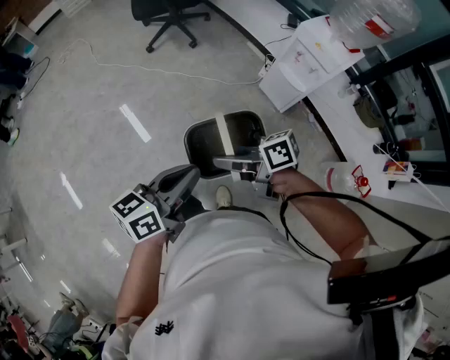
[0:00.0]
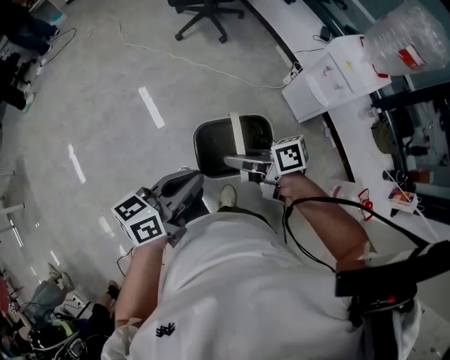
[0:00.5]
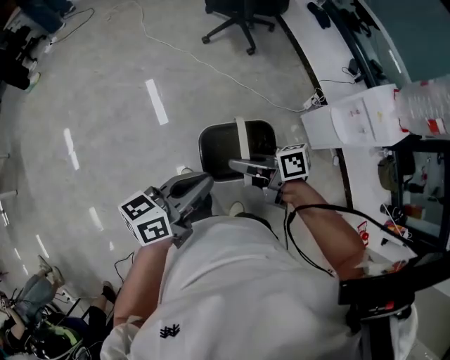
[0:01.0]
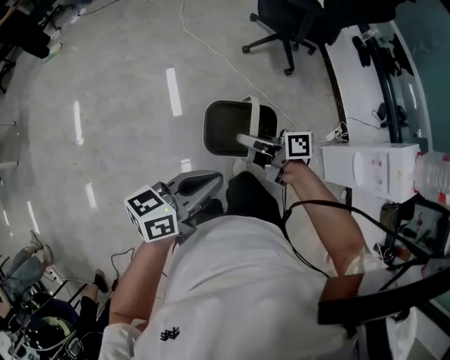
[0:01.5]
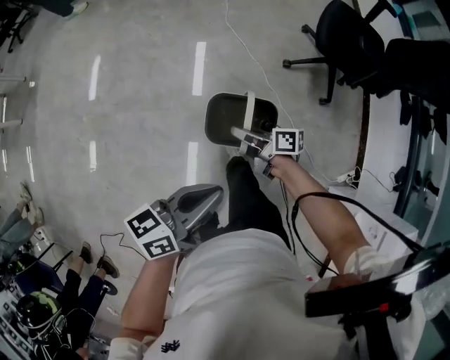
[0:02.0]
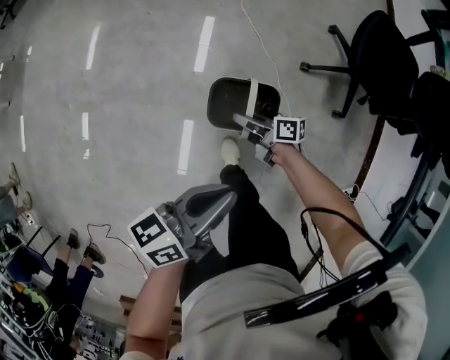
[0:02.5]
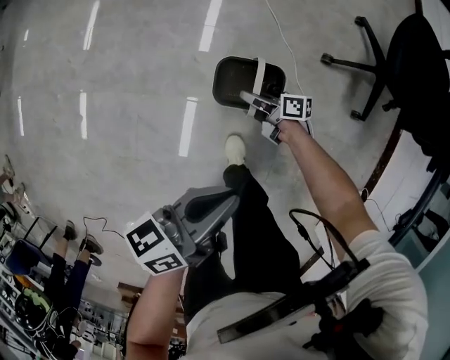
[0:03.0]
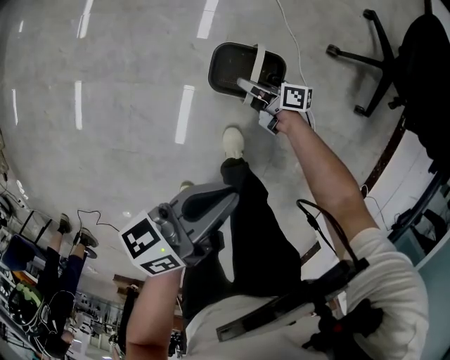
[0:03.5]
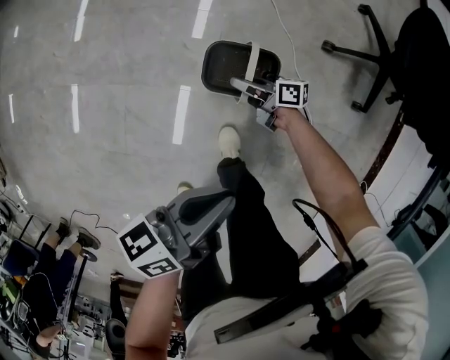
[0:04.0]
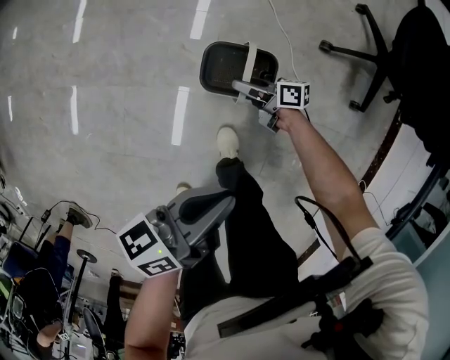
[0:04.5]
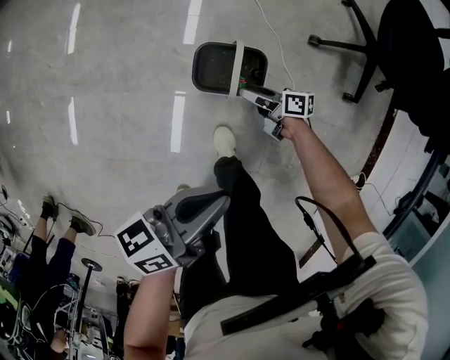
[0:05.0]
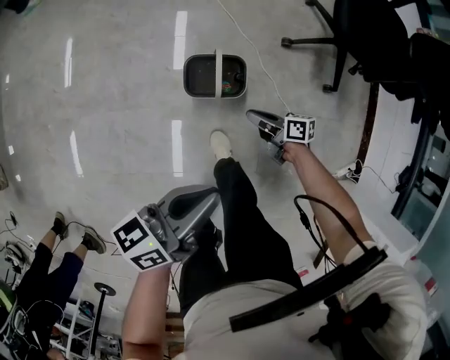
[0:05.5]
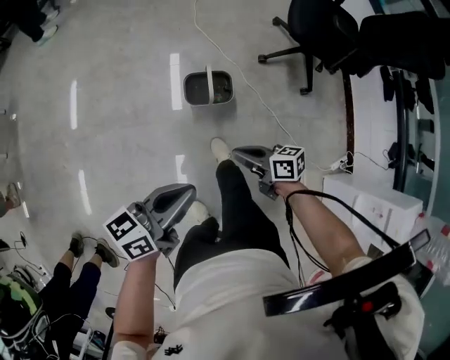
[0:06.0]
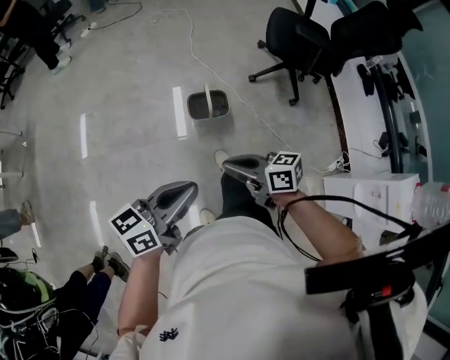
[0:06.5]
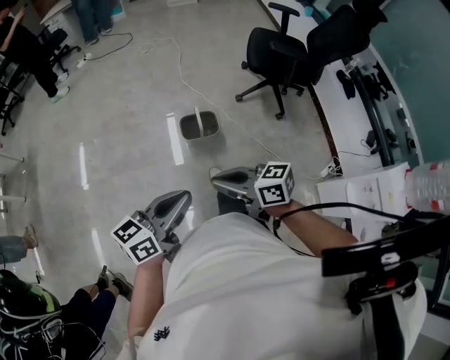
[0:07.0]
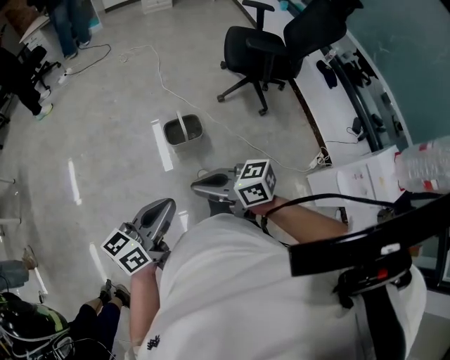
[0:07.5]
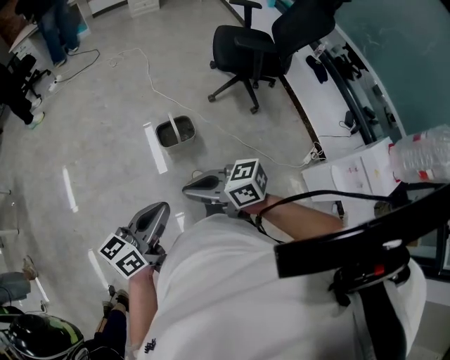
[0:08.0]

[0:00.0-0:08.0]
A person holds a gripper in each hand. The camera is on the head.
0:00.0 to 0:02.0: The two grippers travel together, approximately 70 cm. The left gripper turns by roughly 40 degrees.
0:02.0 to 0:04.0: Both grippers move downward and forward, roughly 40 cm.
0:04.0 to 0:06.0: The right gripper shifts about 50 cm upward and backward, rotates roughly 20 degrees, and closes its fingers; the left gripper shifts approximately 30 cm upward, backward and to the left, and rotates roughly 20 degrees.
0:06.0 to 0:08.0: The right gripper goes some 35 cm upward and backward, and changes its angle by approximately 20 degrees, while the left gripper is displaced backward and upward by about 20 cm.

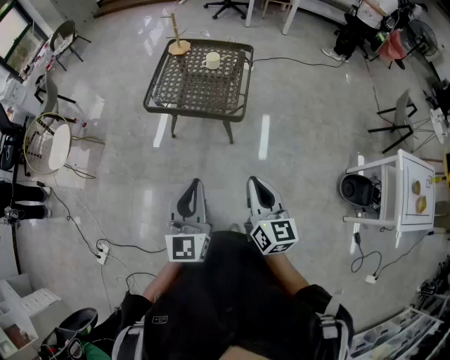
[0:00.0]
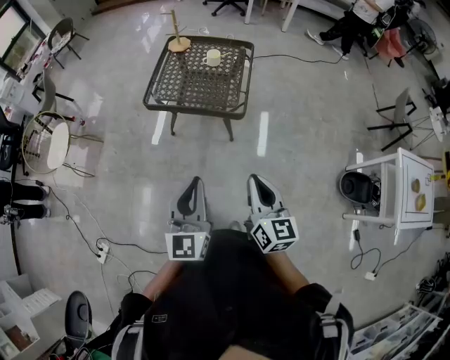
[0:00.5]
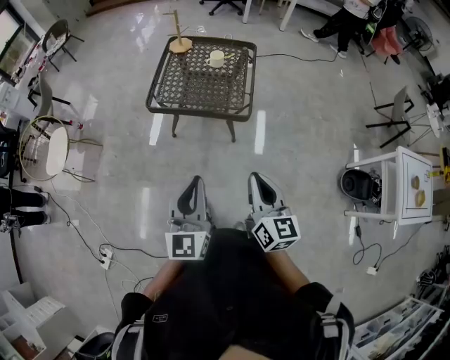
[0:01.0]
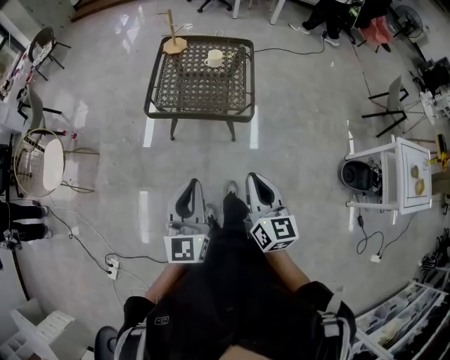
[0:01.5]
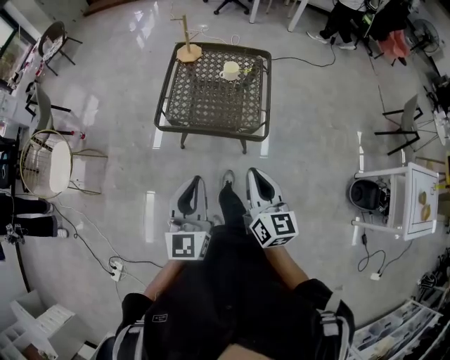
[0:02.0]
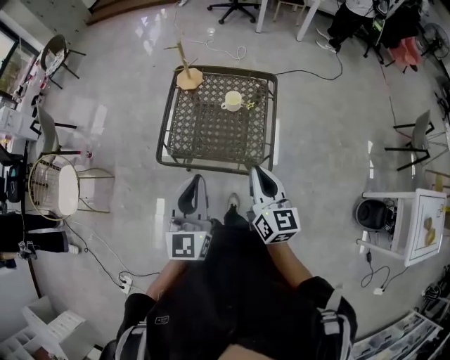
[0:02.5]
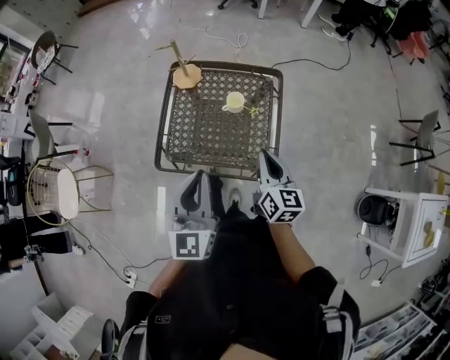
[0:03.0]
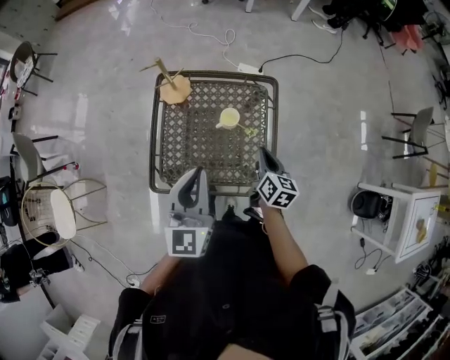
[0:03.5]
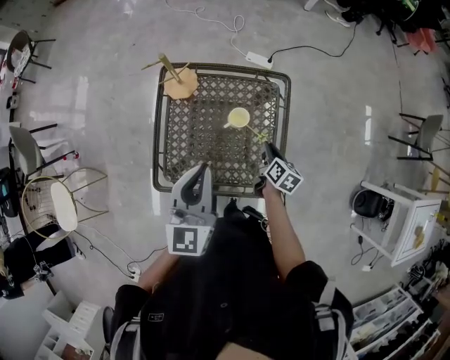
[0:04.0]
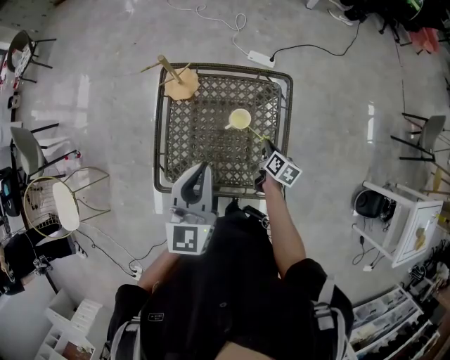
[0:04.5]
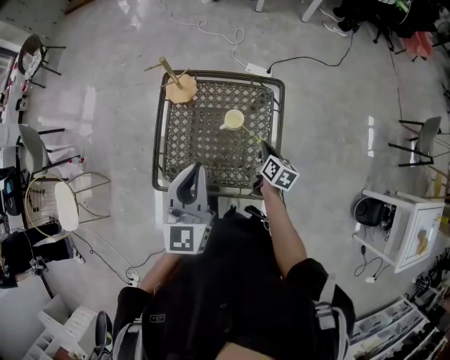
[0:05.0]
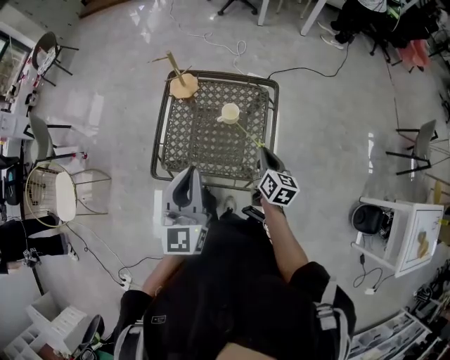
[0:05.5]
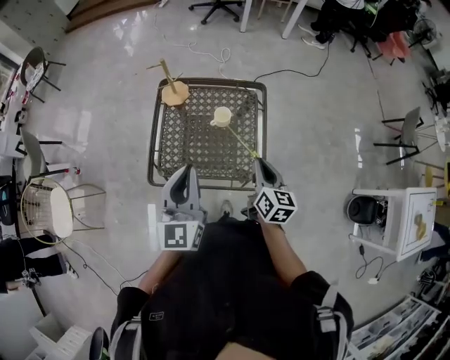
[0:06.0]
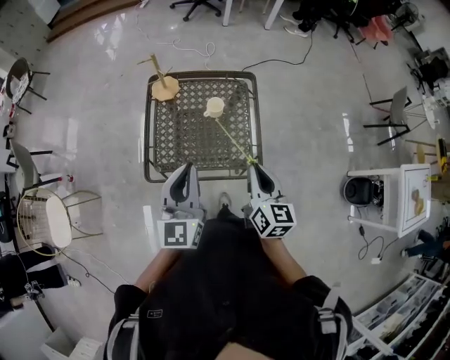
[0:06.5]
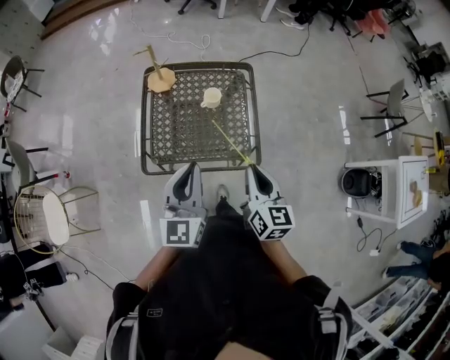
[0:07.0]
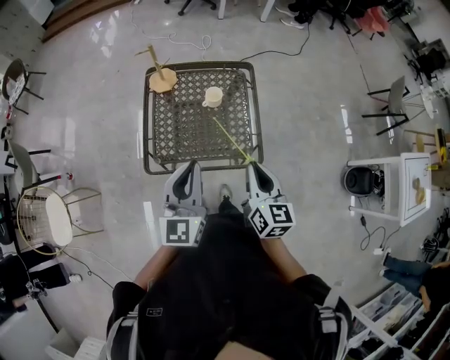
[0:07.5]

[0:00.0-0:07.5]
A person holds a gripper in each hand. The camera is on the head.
0:00.0 to 0:02.0: The grippers both shift forward and to the left by roughly 25 cm.
0:02.0 to 0:04.0: The two grippers travel together, forward, about 50 cm. The right gripper goes some 25 cm downward, and points its fingers approximately 30 degrees further downward.
0:04.0 to 0:05.5: The left gripper travels backward by approximately 15 cm; the right gripper travels upward and backward by approximately 15 cm, and changes its angle by approximately 20 degrees.
0:05.5 to 0:07.5: The right gripper heads backward and upward, covering approximately 20 cm. Meanwhile the left gripper moves backward, roughly 5 cm.

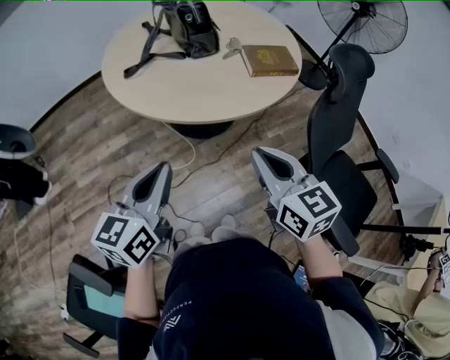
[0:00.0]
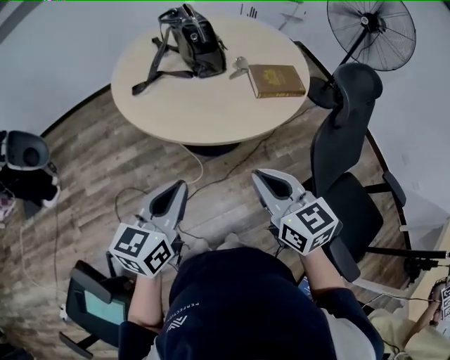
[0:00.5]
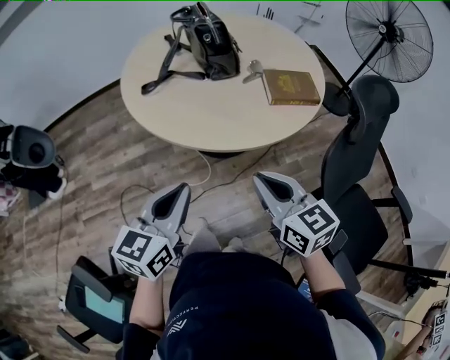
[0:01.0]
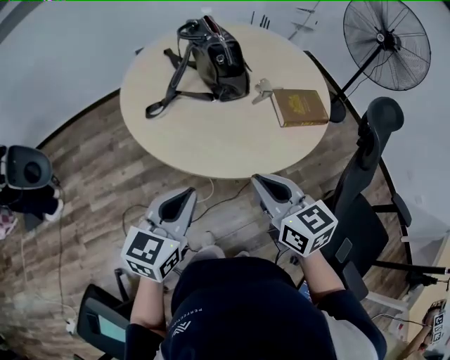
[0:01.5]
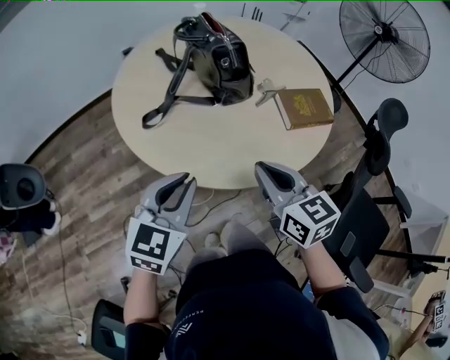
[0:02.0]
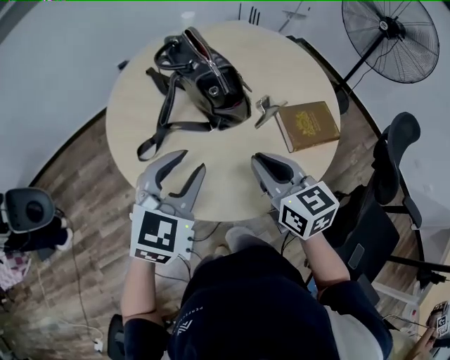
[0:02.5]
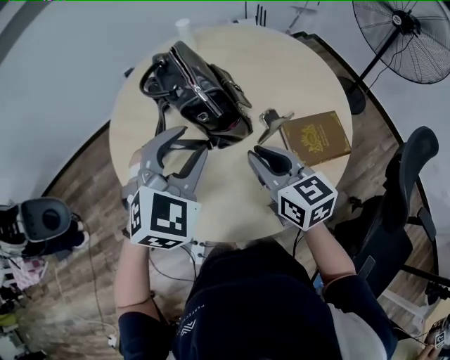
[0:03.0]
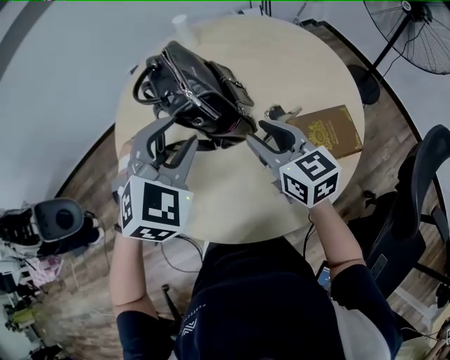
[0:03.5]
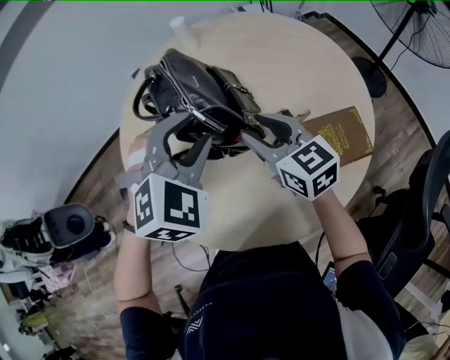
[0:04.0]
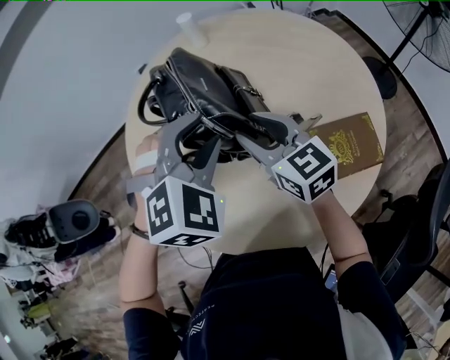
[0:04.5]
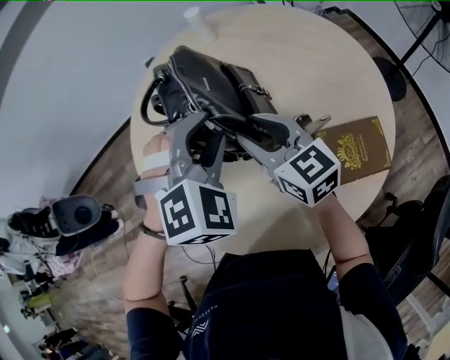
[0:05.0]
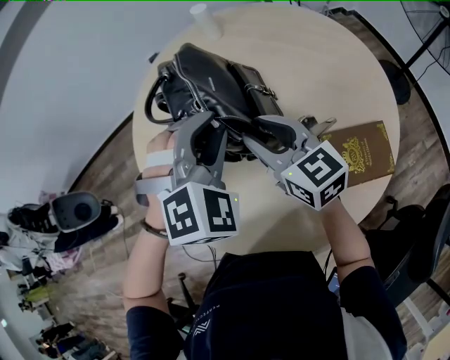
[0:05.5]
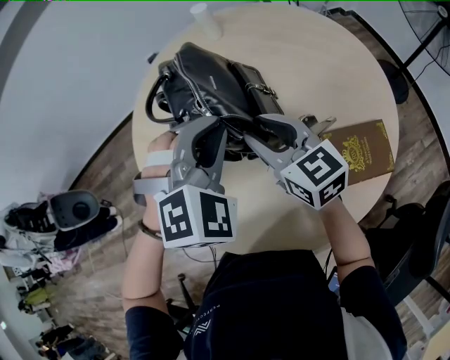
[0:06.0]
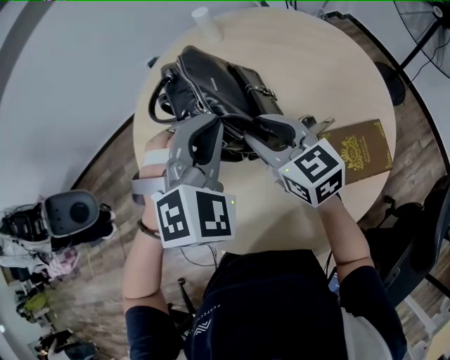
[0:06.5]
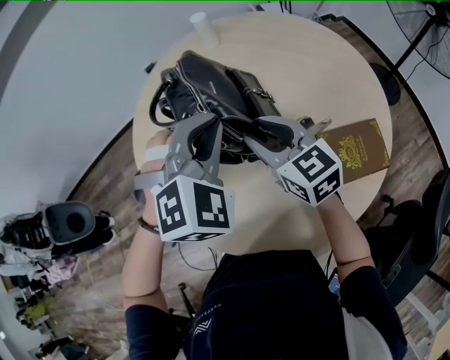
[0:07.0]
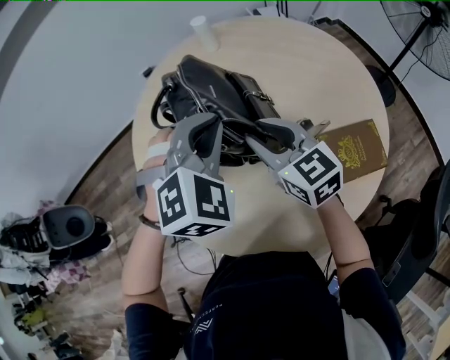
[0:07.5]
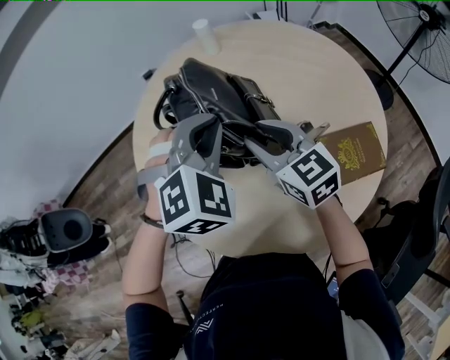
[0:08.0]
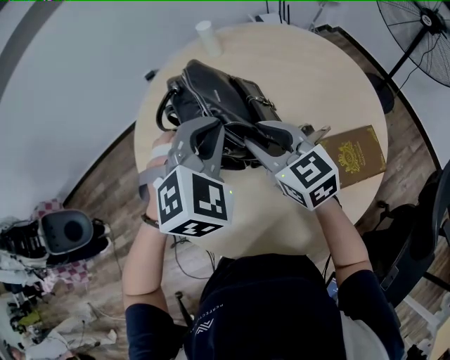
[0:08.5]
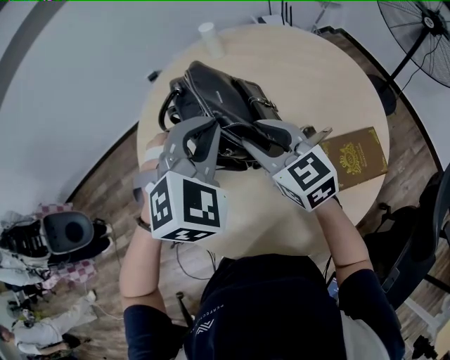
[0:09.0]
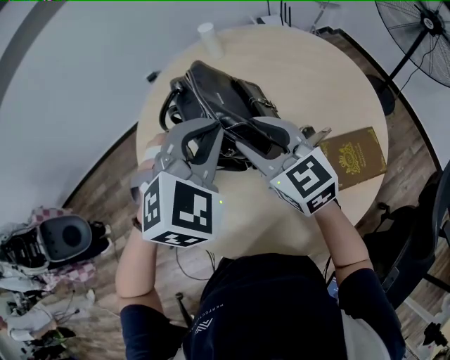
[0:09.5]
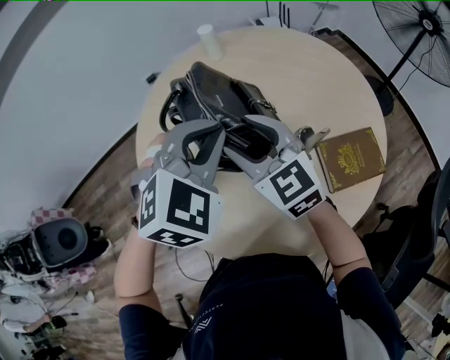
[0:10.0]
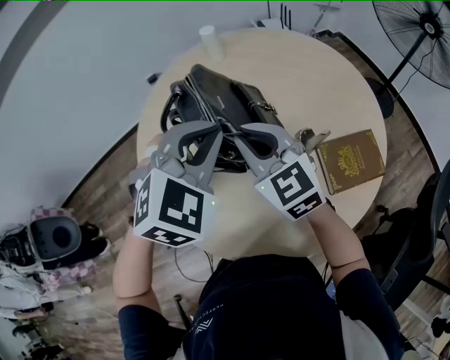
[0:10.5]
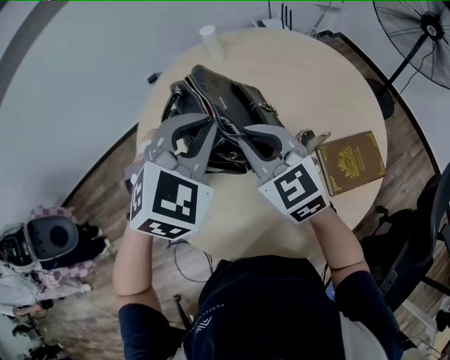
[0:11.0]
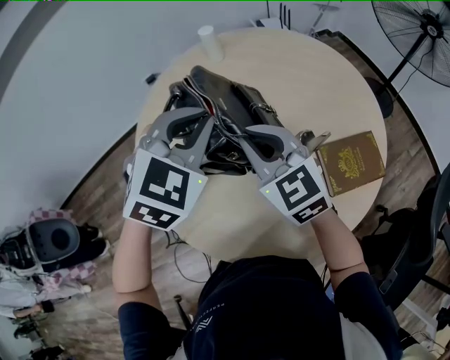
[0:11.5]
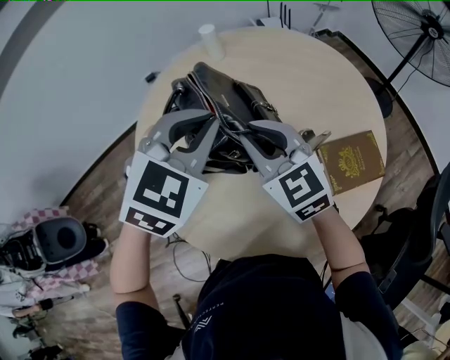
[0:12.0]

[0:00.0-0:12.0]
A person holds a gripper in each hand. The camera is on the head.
0:00.0 to 0:02.0: Both grippers travel together forward, roughly 20 cm. The left gripper turns by about 30 degrees.
0:02.0 to 0:04.0: The left gripper shifts approximately 35 cm forward and to the right, rolls clockwise, seen from behind, by about 40 degrees, and opens, while the right gripper goes about 30 cm forward, and opens its fingers.
0:04.0 to 0:06.0: The left gripper closes.
0:06.0 to 0:08.0: There are only small adjustments of the grippers.
0:08.0 to 0:10.0: The right gripper moves roughly 5 cm, and opens its fingers.
0:10.0 to 0:12.0: The right gripper closes.
